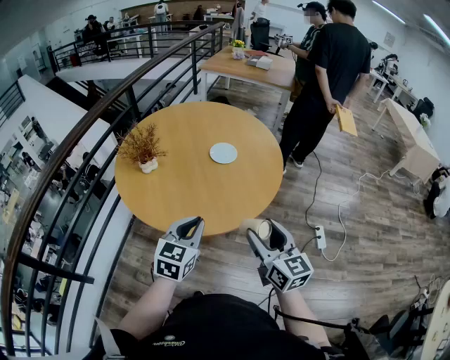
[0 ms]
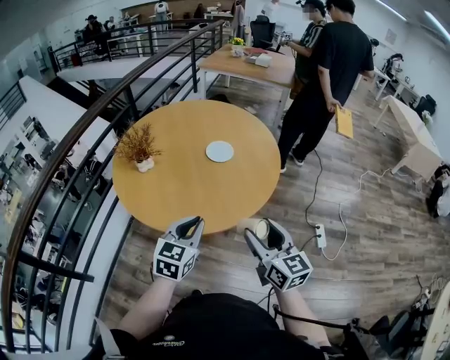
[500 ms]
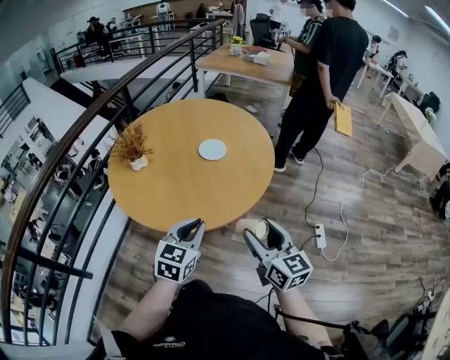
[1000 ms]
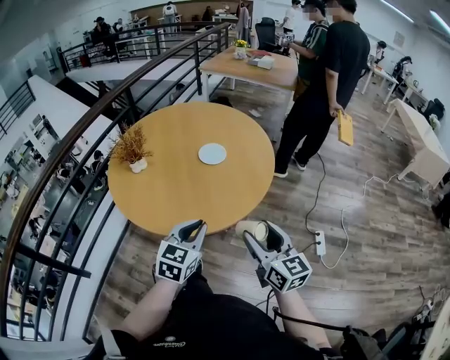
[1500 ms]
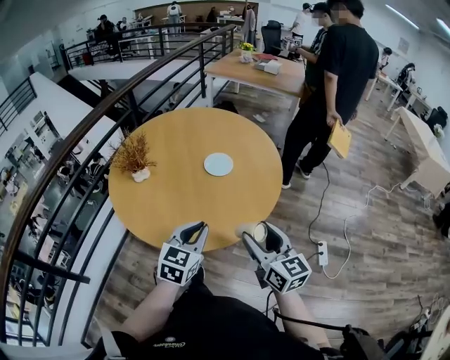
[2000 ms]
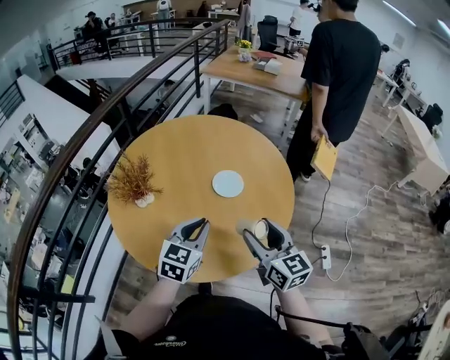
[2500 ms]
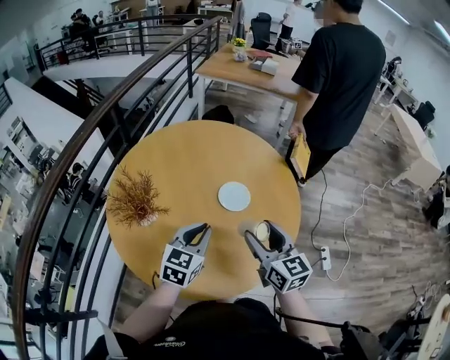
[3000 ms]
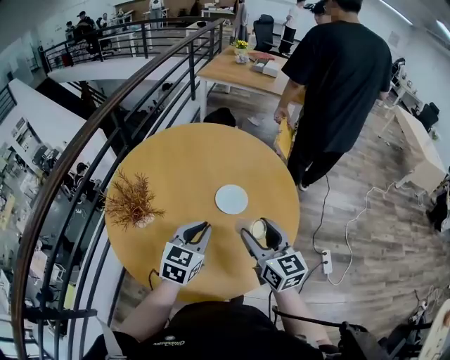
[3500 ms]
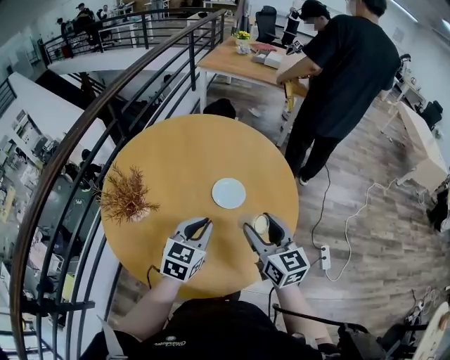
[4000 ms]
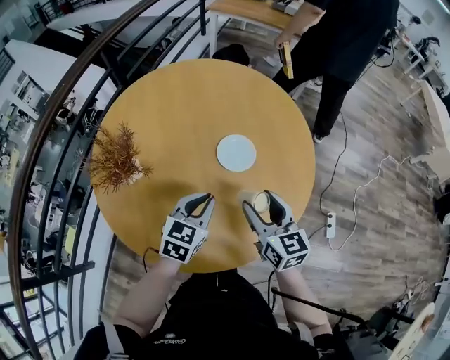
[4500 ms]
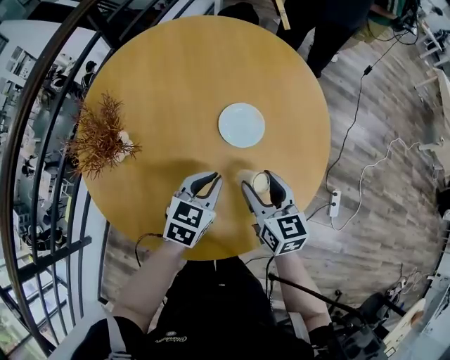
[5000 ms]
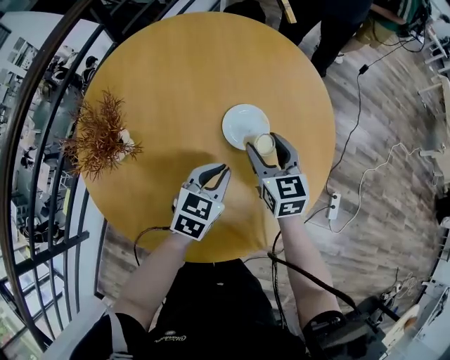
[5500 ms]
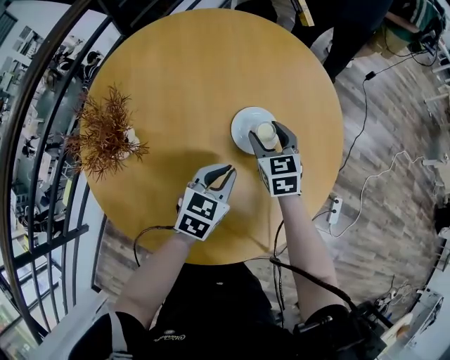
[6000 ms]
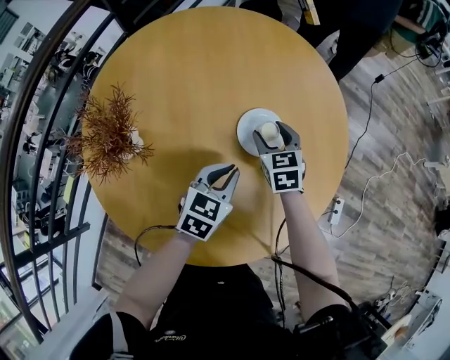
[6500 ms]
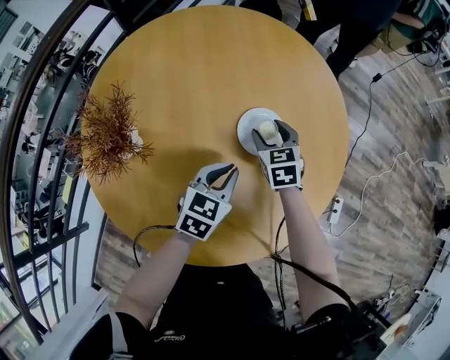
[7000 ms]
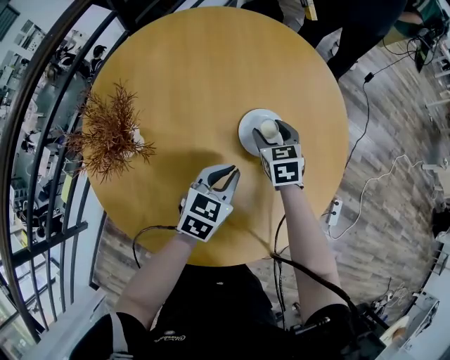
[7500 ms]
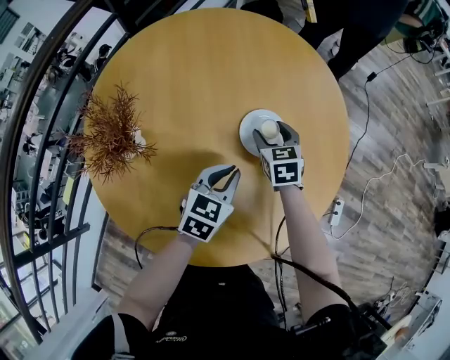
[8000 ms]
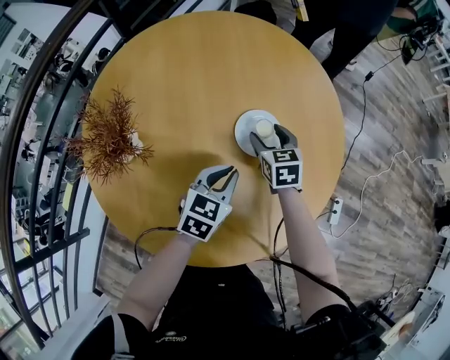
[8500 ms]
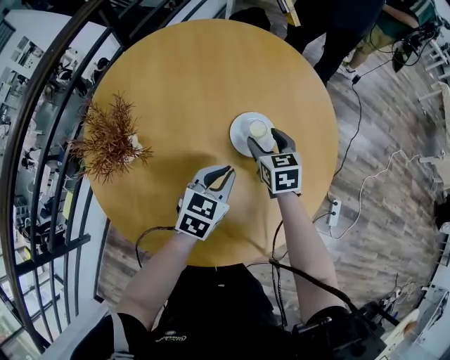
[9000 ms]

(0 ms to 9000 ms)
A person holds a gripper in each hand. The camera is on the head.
0 ms - 2000 ms: The left gripper is displaced to the right and forward by approximately 10 cm, while the right gripper travels forward and to the right by approximately 10 cm.
2000 ms - 4500 ms: The left gripper is displaced forward by some 20 cm, while the right gripper heads forward and to the left, covering about 25 cm.
4500 ms - 7000 ms: The right gripper goes roughly 25 cm forward and downward, and turns by about 30 degrees; the left gripper moves downward and forward, some 10 cm.
7000 ms - 9000 ms: The grippers make only small movements.

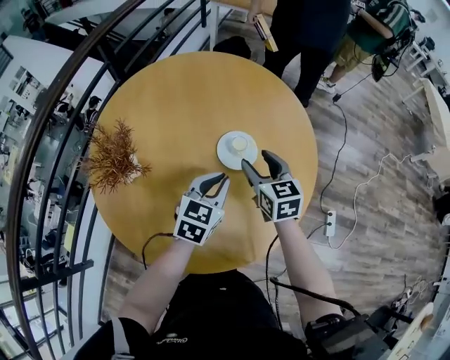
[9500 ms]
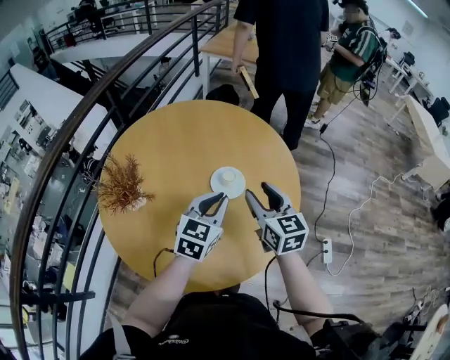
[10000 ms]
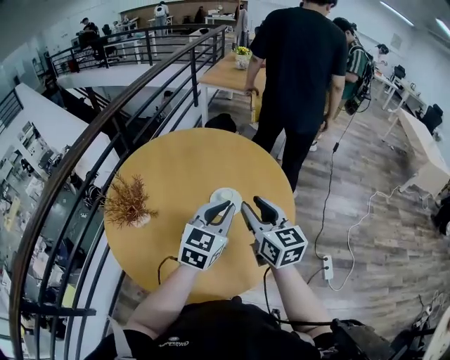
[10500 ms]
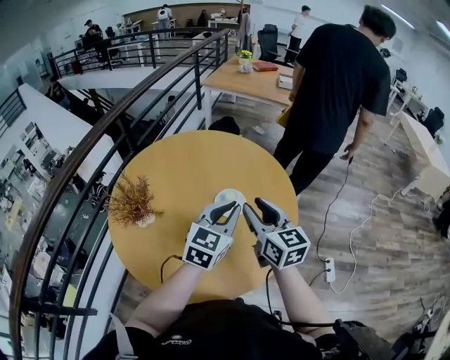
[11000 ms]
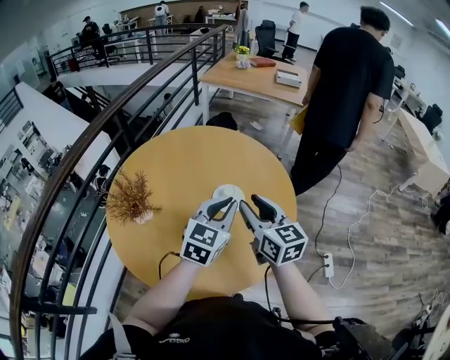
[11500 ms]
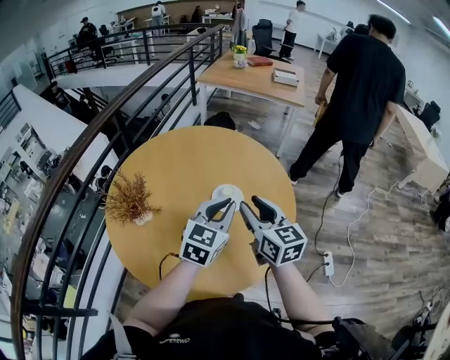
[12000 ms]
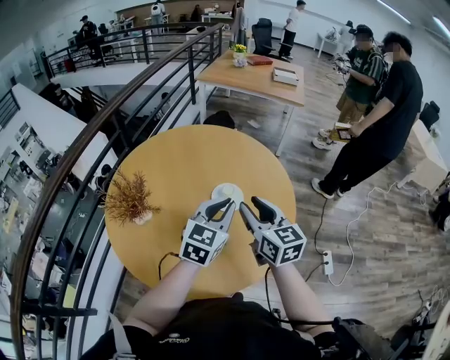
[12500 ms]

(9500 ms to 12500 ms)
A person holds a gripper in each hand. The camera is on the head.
9500 ms - 11000 ms: The right gripper goes approximately 20 cm upward and backward, rotates about 20 degrees, and closes its fingers; the left gripper is displaced upward by approximately 15 cm.
11000 ms - 12500 ms: The grippers make only small movements.

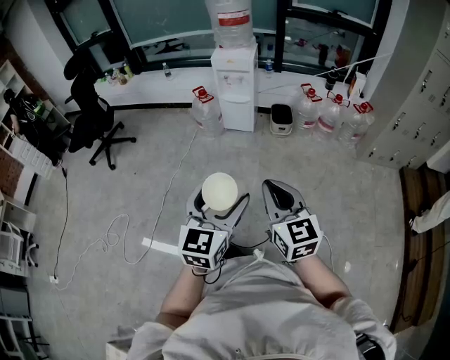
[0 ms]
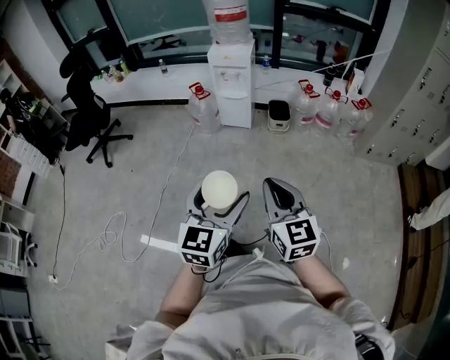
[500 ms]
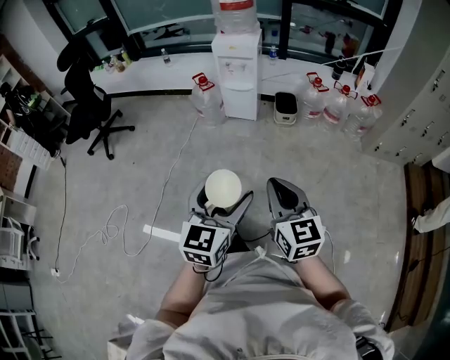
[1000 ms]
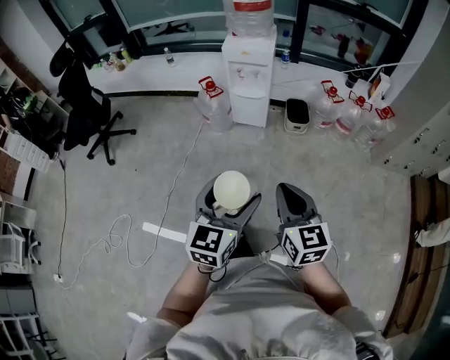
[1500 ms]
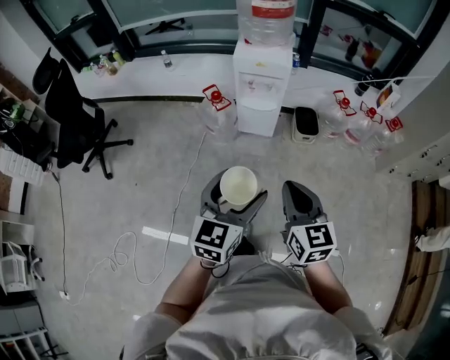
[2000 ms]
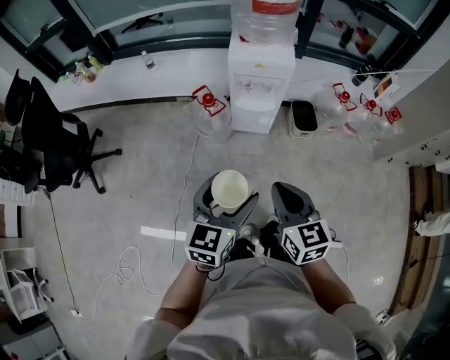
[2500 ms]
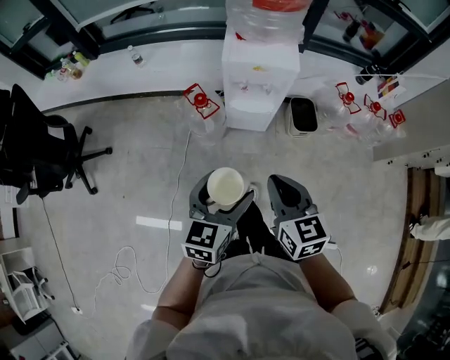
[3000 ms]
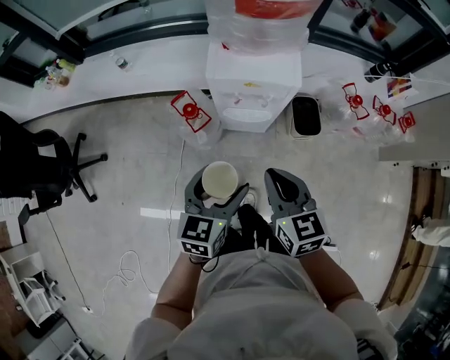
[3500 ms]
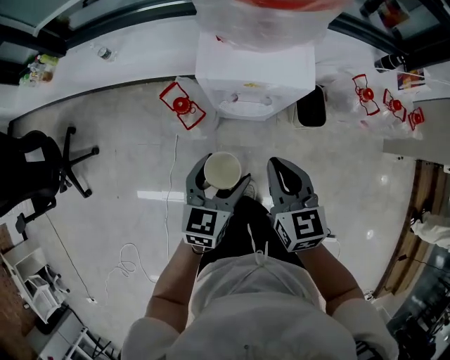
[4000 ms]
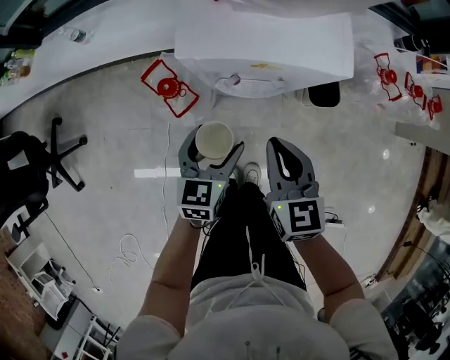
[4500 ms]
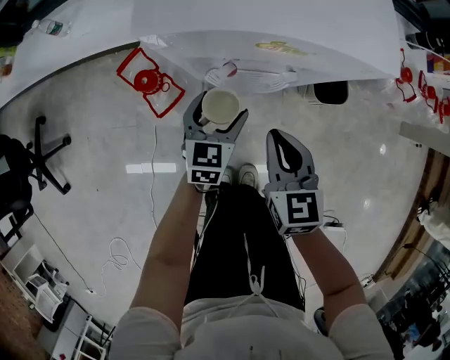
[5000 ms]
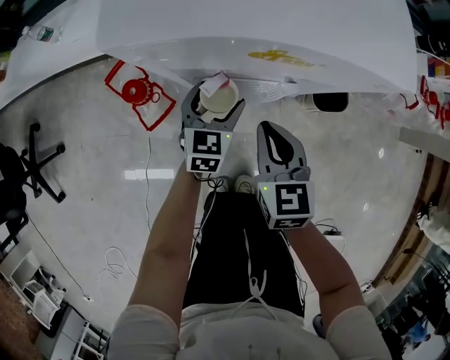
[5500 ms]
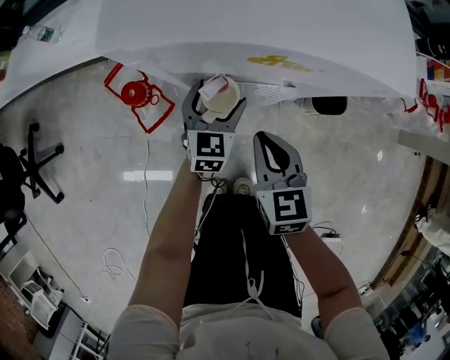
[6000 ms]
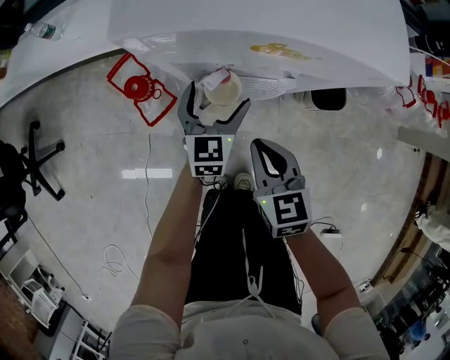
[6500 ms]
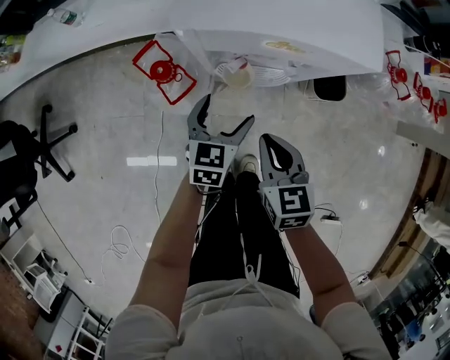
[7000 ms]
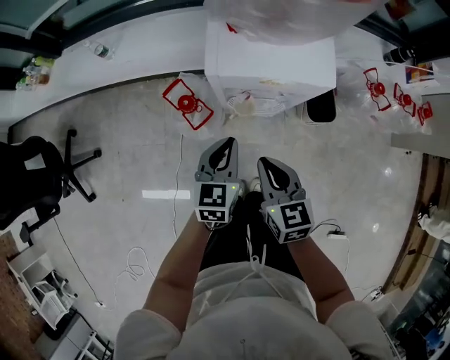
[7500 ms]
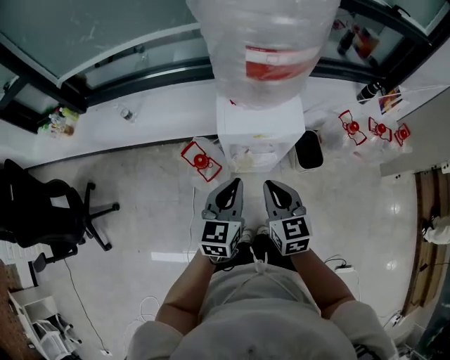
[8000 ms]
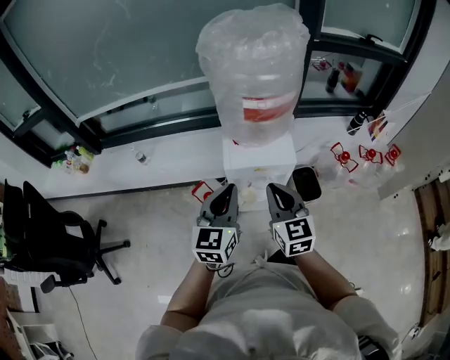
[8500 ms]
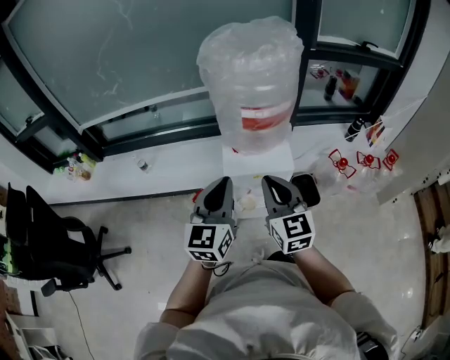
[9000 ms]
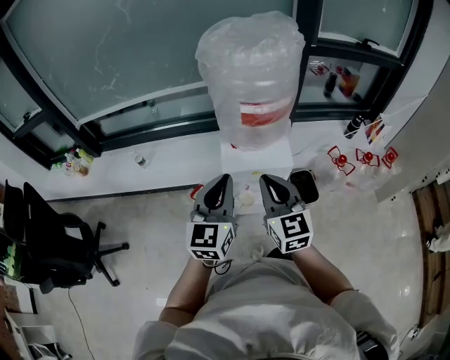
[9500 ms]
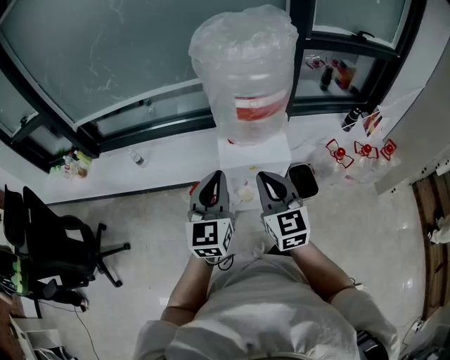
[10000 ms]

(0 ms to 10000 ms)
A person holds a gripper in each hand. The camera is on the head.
0 ms - 2000 ms: The two grippers go approximately 35 cm forward.
2000 ms - 4000 ms: The pair of grippers is taken forward, some 40 cm. The left gripper shifts roughly 20 cm downward.
4000 ms - 6000 ms: The left gripper shifts approximately 35 cm downward and forward; the right gripper shifts approximately 25 cm downward.
6000 ms - 8000 ms: The grippers both shift upward by roughly 35 cm. The left gripper closes up.
8000 ms - 10000 ms: The grippers both shift upward by roughly 15 cm. The left gripper changes its angle by some 20 degrees.

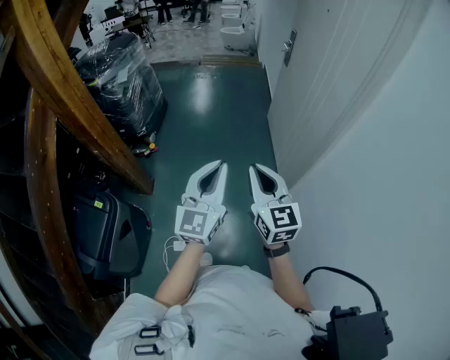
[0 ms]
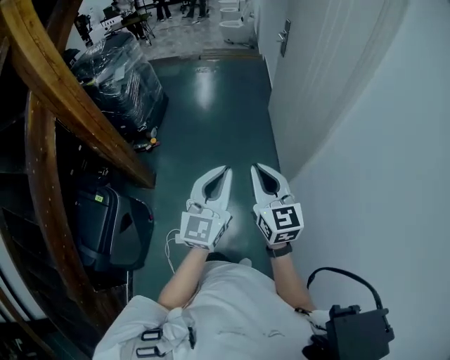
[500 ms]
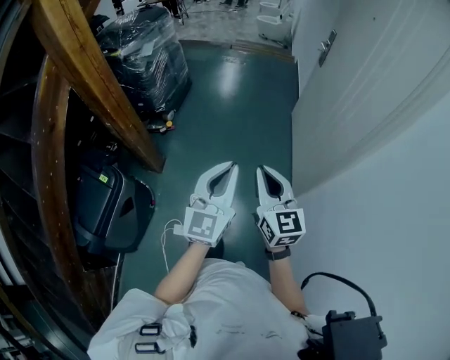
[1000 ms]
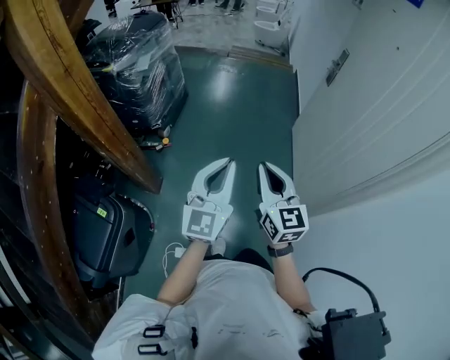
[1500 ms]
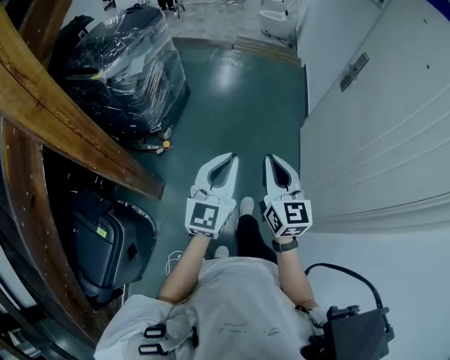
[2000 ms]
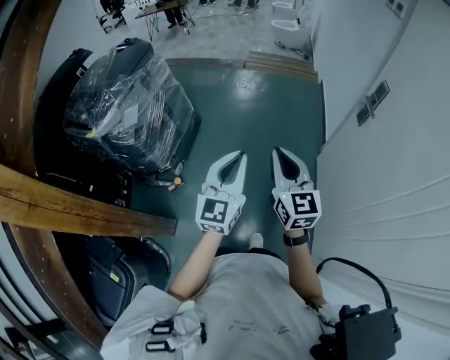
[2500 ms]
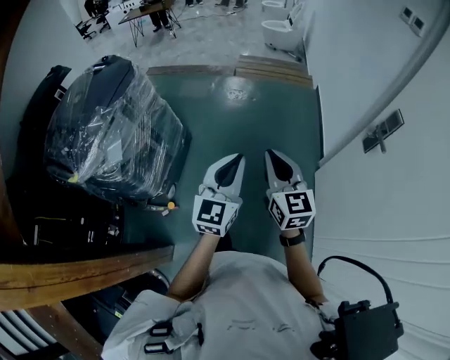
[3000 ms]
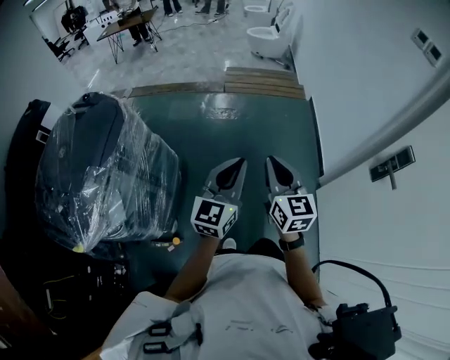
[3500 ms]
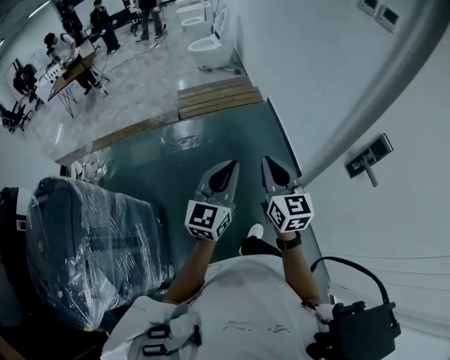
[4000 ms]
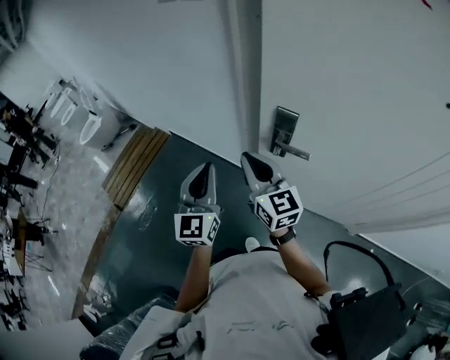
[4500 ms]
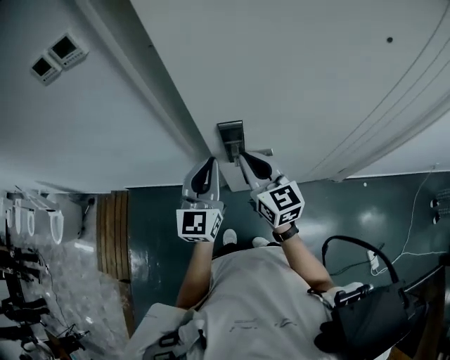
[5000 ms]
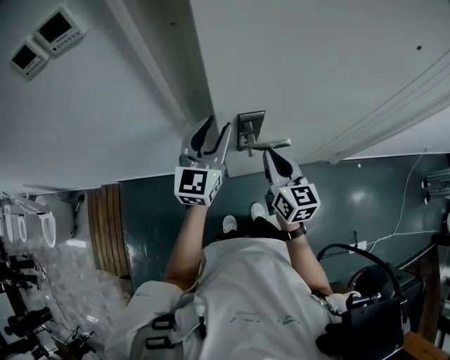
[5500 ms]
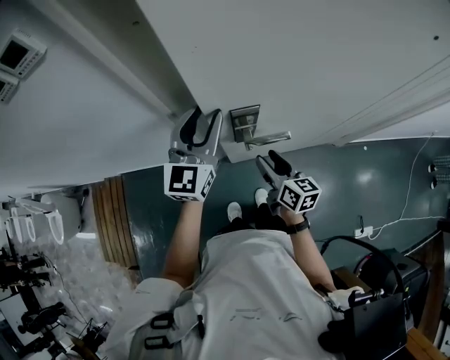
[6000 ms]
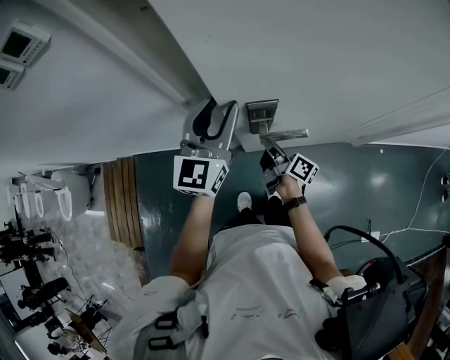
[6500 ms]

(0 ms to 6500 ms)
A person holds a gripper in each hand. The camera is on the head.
0 ms - 2000 ms: Both grippers travel together forward, some 35 cm.
2000 ms - 4500 ms: Both grippers are carried about 90 cm. The left gripper rotates approximately 60 degrees. The right gripper changes its angle by some 60 degrees.
4500 ms - 6500 ms: The left gripper moves approximately 25 cm, changes its angle by some 40 degrees, and opens its fingers; the right gripper travels downward by about 25 cm, rotates around the line of its fingers by about 60 degrees, clockwise from behind, and opens.
